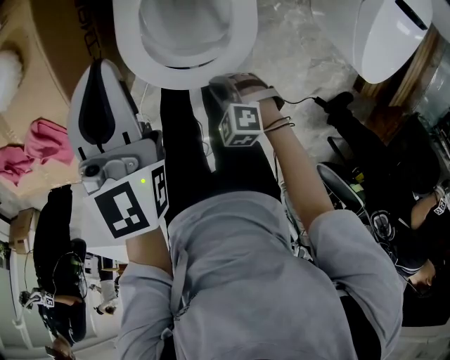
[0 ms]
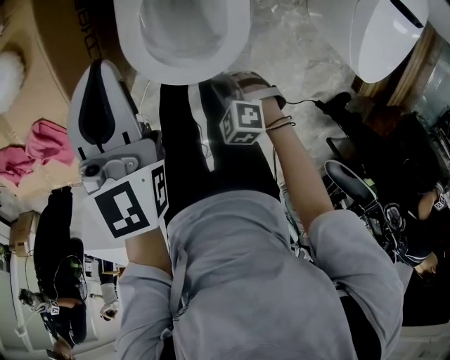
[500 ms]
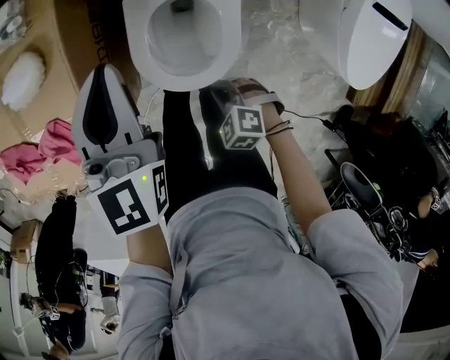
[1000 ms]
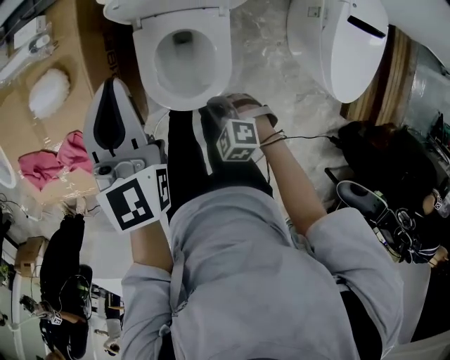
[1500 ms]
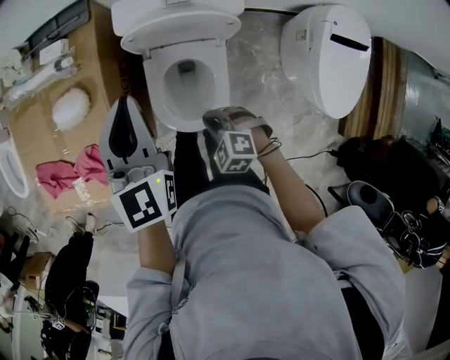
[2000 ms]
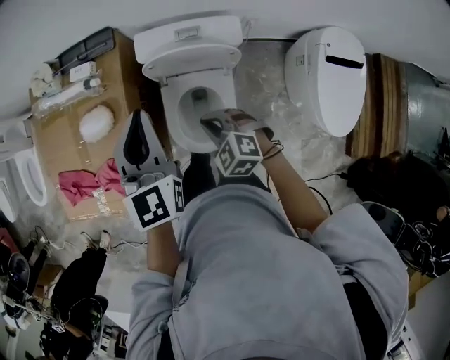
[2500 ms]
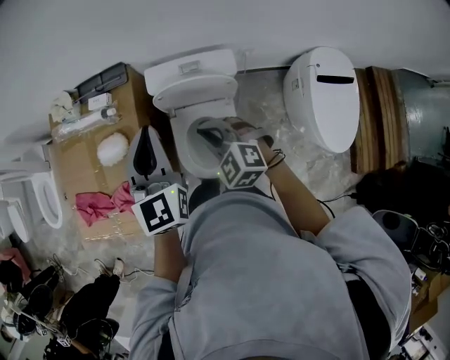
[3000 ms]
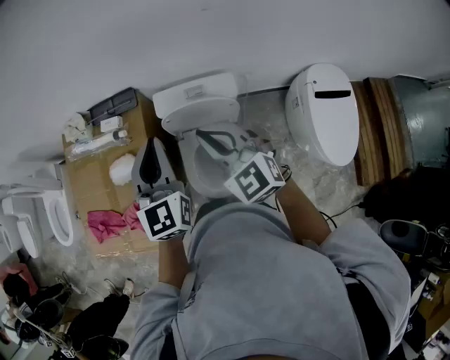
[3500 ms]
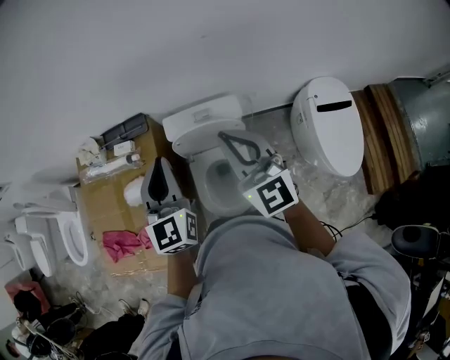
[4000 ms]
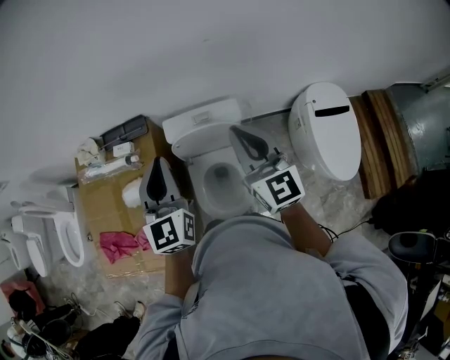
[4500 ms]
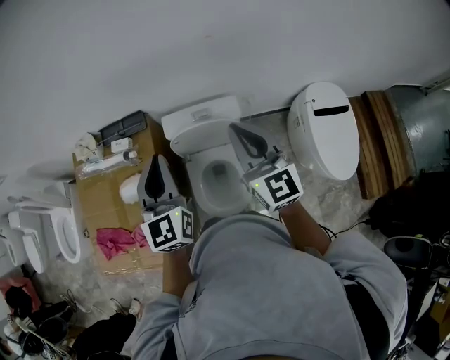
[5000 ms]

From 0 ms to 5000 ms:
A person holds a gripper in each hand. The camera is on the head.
From 0 ms to 2500 ms: The left gripper moves upward, about 25 cm. Meanwhile the right gripper travels upward and forward by approximately 35 cm, and turns by about 30 degrees.
From 2500 ms to 5000 ms: The left gripper shifts some 10 cm upward, while the right gripper travels upward by about 30 cm, and points its fingers roughly 50 degrees further upward.

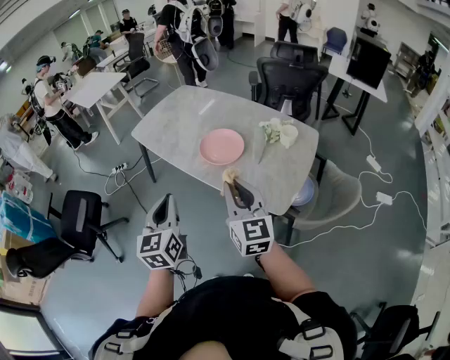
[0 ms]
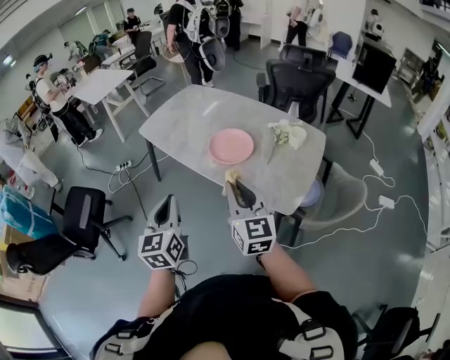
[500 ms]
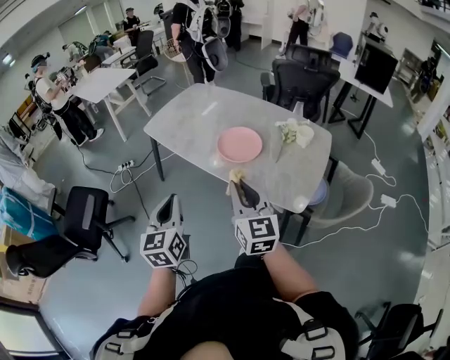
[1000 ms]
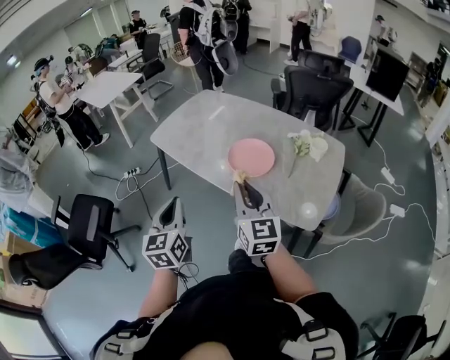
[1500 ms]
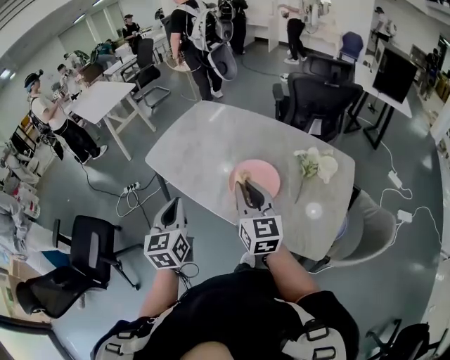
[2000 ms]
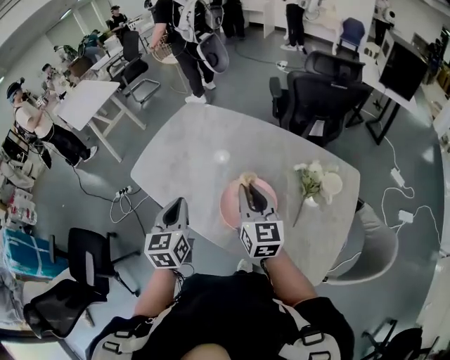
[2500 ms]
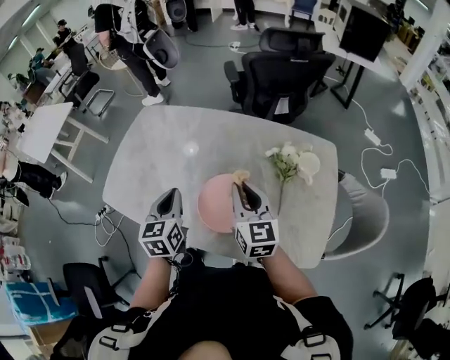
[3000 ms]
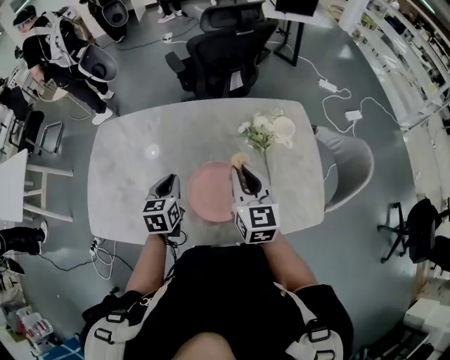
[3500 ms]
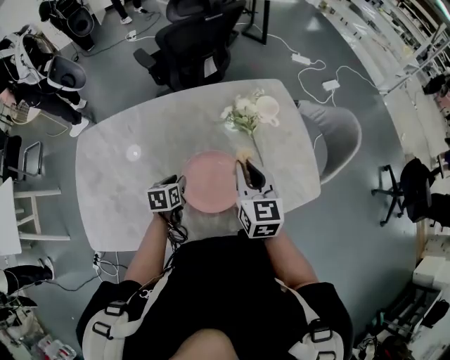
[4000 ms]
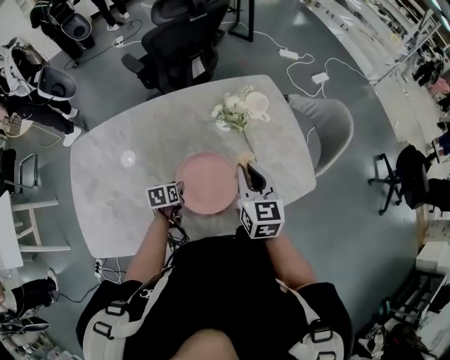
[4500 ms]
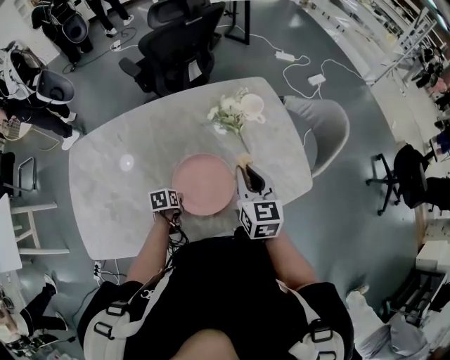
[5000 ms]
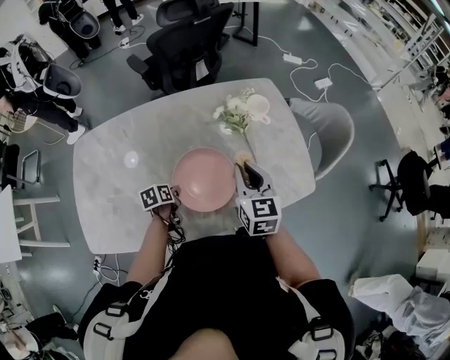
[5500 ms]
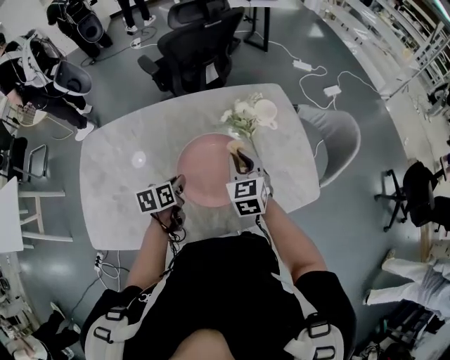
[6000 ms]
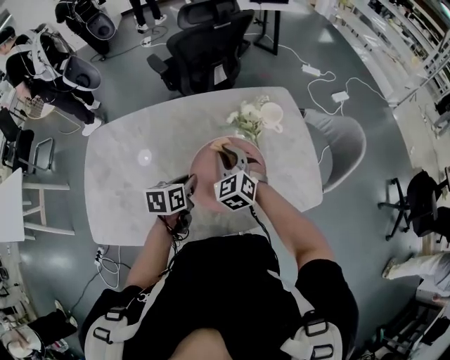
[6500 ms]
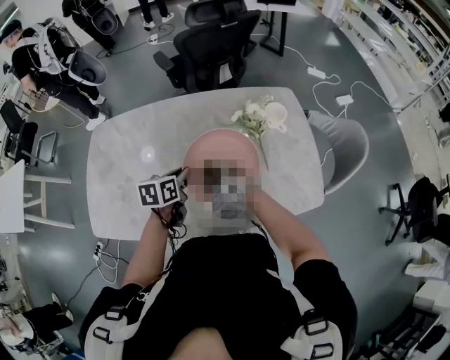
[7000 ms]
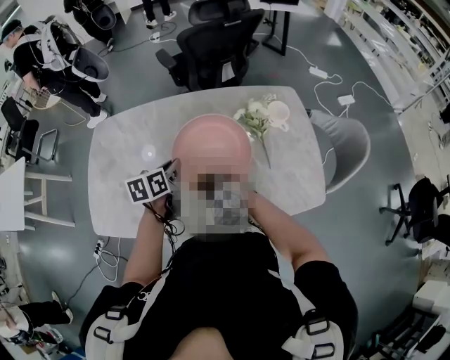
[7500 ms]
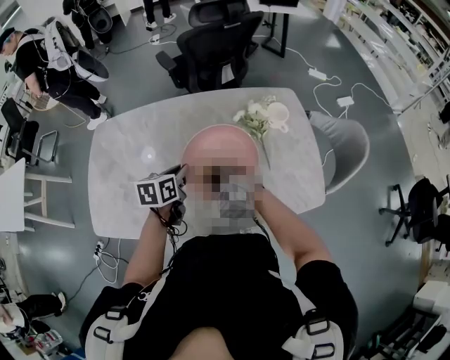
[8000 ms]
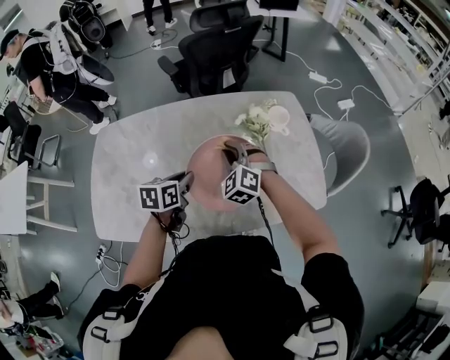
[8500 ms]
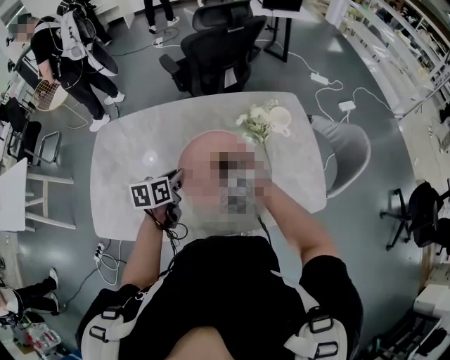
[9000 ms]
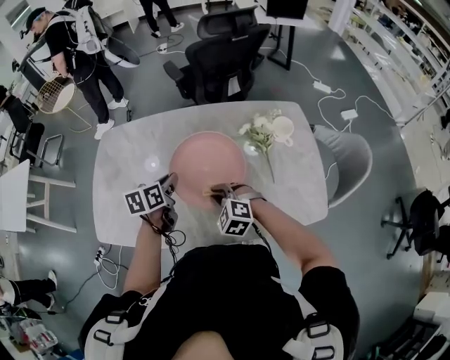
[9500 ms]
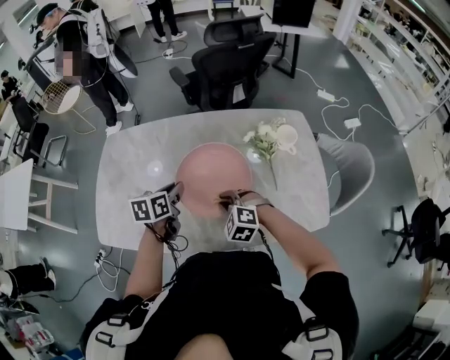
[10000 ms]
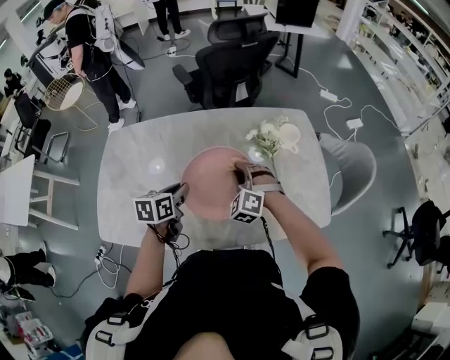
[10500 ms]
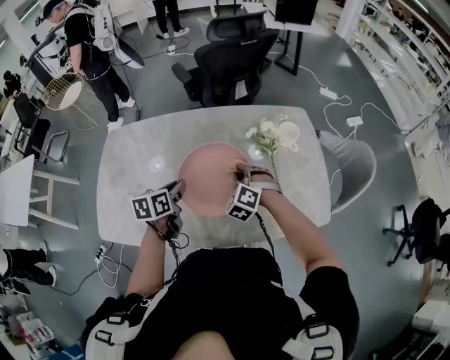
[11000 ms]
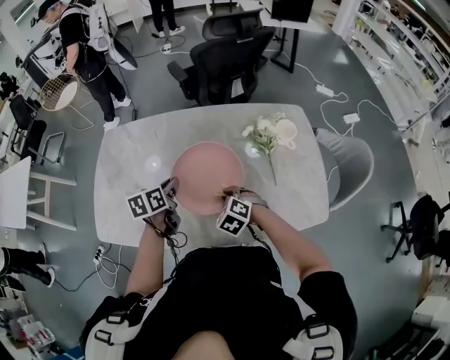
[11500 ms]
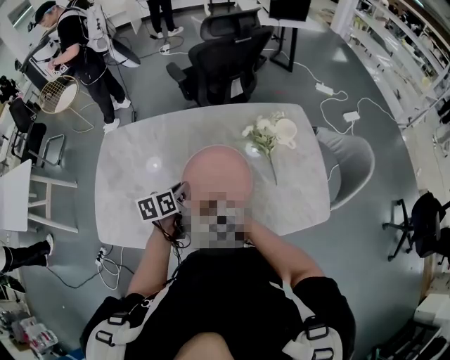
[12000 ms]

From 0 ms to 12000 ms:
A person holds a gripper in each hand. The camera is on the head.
From 0 ms to 2000 ms: The grippers both shift forward by about 25 cm.
From 2000 ms to 4000 ms: The right gripper shifts by about 20 cm, and changes its angle by some 50 degrees. The left gripper moves roughly 40 cm, tilts its fingers some 40 degrees downward, and opens its fingers.
From 4000 ms to 6000 ms: The left gripper travels upward by about 5 cm, and closes up; the right gripper shifts about 5 cm downward, and swivels about 20 degrees.
From 6000 ms to 8000 ms: The left gripper heads upward, covering roughly 5 cm; the right gripper shifts roughly 15 cm to the left and backward, and turns by some 50 degrees.
From 8000 ms to 10000 ms: The right gripper reaches about 5 cm forward, then returns. The left gripper shifts roughly 5 cm to the left.
From 10000 ms to 12000 ms: The right gripper goes about 5 cm to the left, goes forward and returns, roughly 10 cm each way, and turns by about 40 degrees.

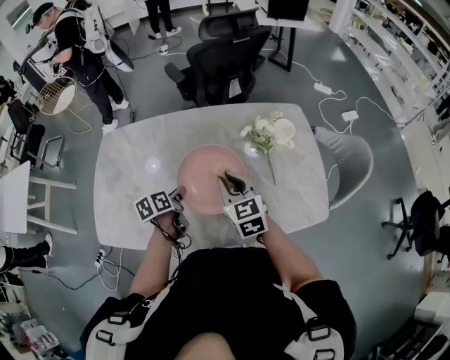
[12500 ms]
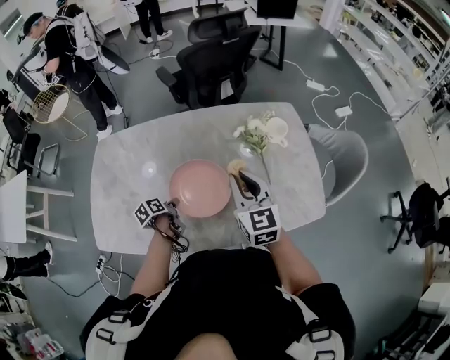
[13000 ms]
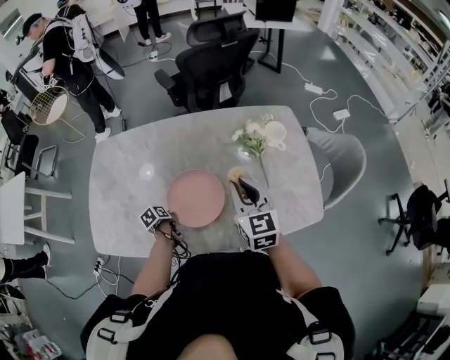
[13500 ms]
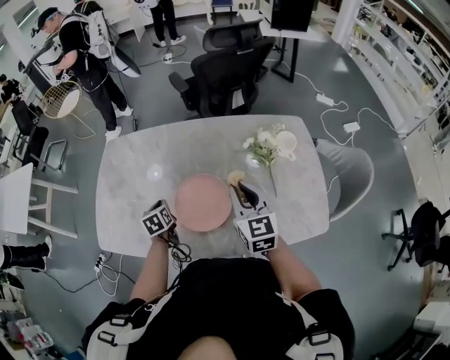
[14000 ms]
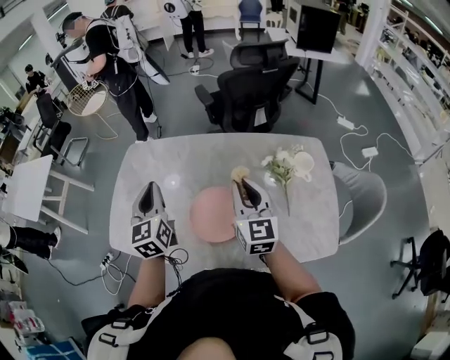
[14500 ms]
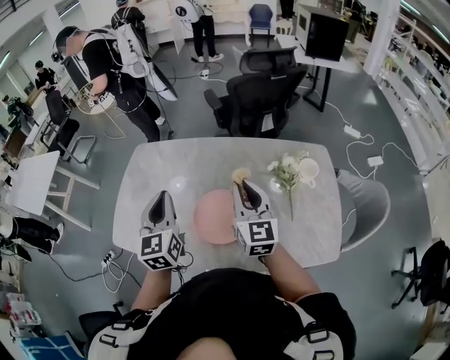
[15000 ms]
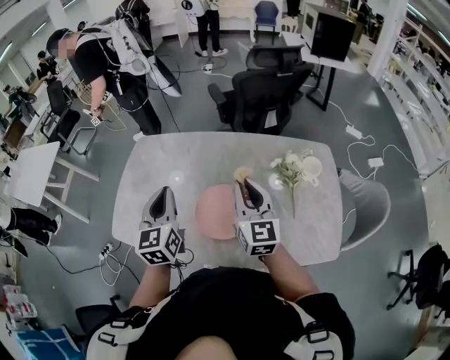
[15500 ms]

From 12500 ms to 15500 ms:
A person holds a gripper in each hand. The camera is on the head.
From 12500 ms to 14000 ms: The left gripper is displaced to the left by about 10 cm, travels downward and back again, about 15 cm each way, and swivels some 30 degrees.
From 14000 ms to 15500 ms: The right gripper goes some 10 cm upward and to the left. The left gripper is displaced upward by some 25 cm, and points its fingers roughly 40 degrees further upward.

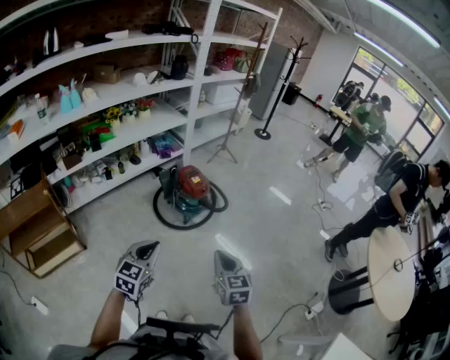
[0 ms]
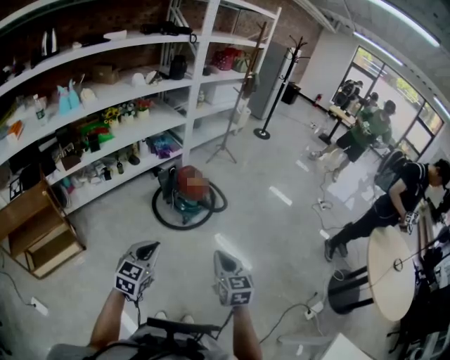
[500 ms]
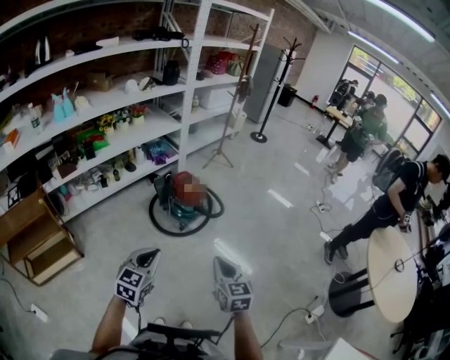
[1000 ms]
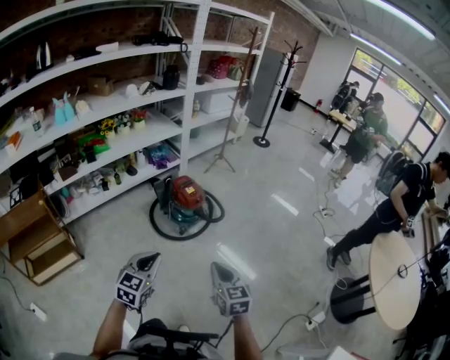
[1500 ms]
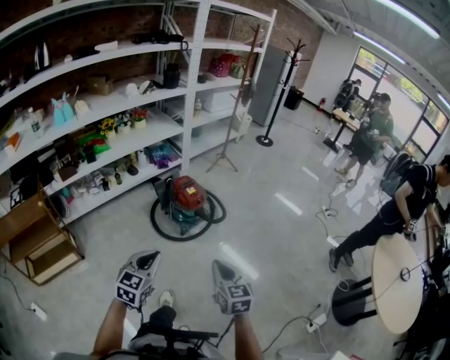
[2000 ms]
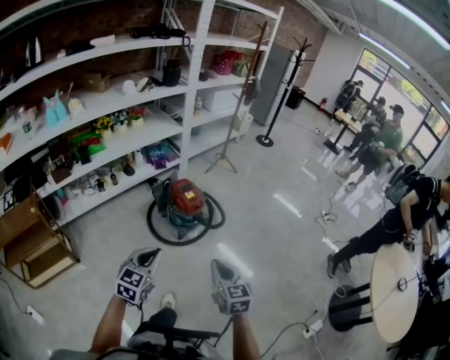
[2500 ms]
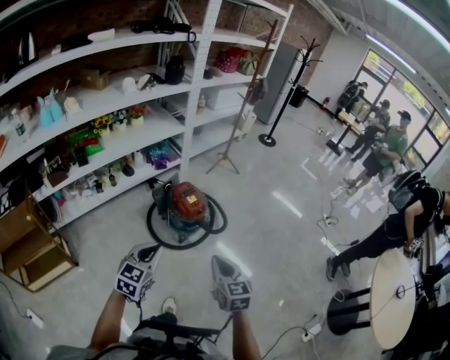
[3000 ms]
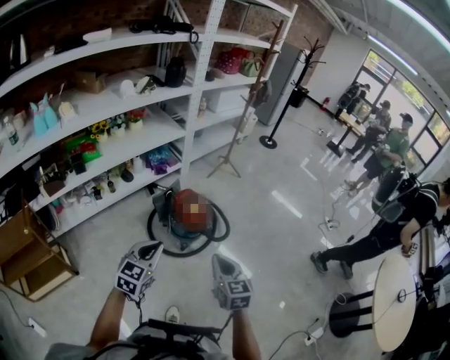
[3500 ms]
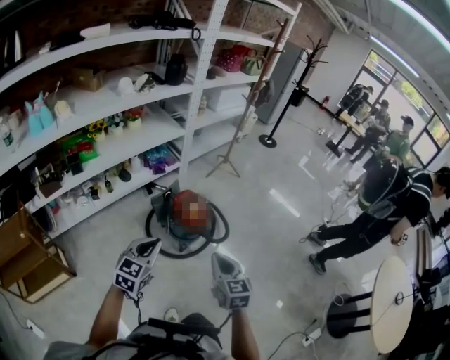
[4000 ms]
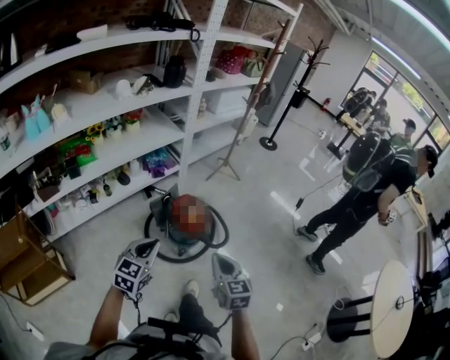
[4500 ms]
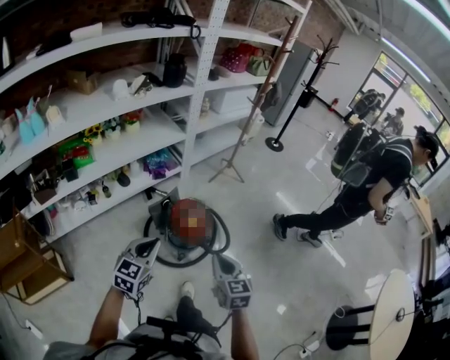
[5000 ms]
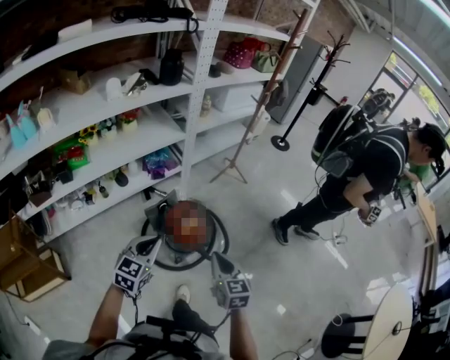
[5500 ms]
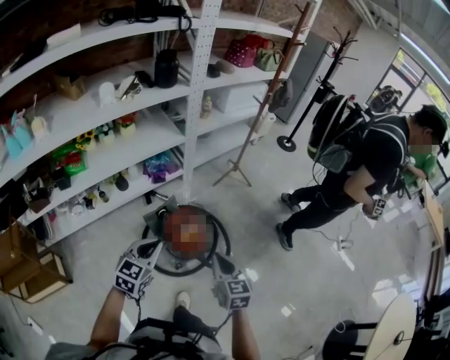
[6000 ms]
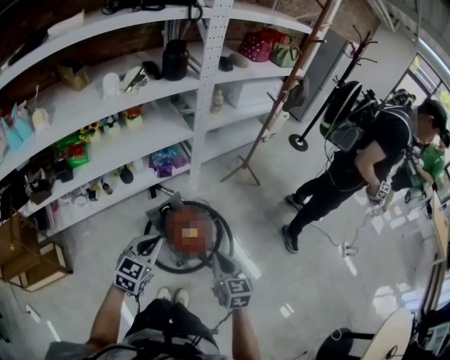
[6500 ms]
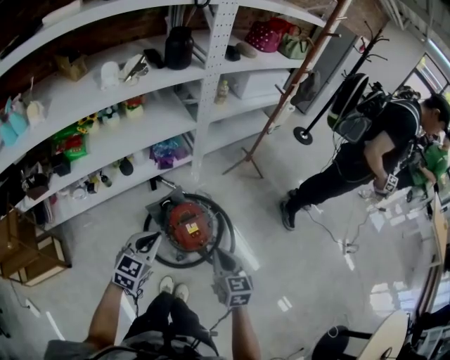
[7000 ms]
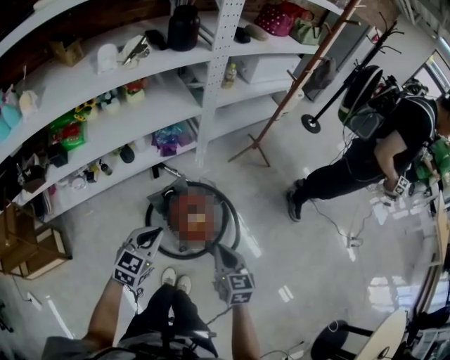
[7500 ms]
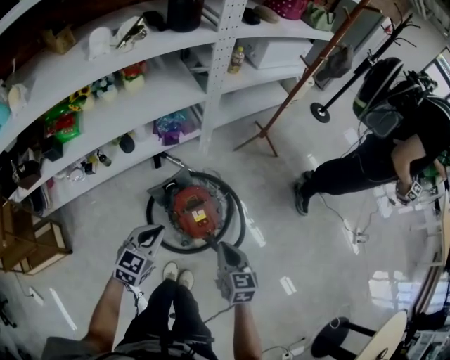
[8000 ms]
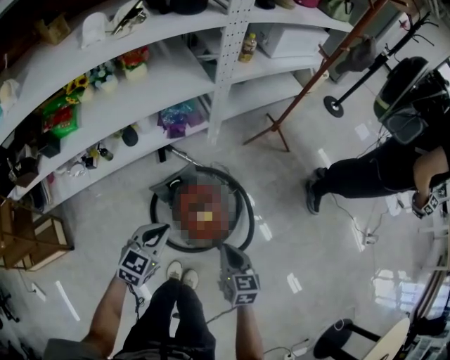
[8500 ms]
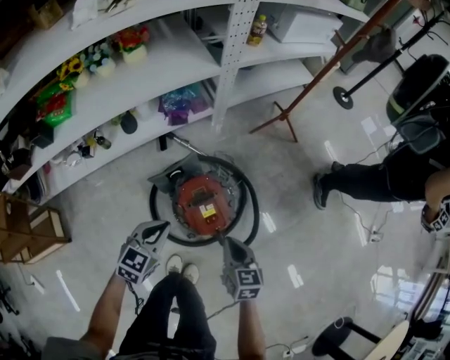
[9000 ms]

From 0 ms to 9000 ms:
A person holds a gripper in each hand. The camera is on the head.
From 0 ms to 2000 ms: The two grippers go roughly 5 cm to the right.
From 2000 ms to 4500 ms: The grippers both shift forward by some 30 cm.
From 4500 ms to 7000 ms: The grippers both shift forward by approximately 30 cm.
From 7000 ms to 9000 ms: The two grippers go about 25 cm downward and forward.
